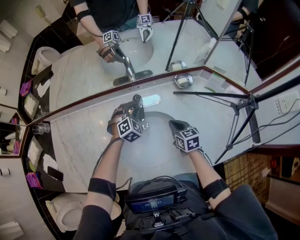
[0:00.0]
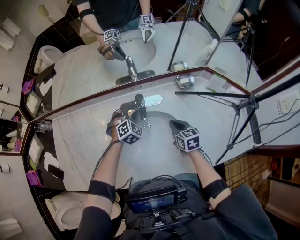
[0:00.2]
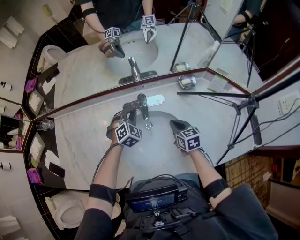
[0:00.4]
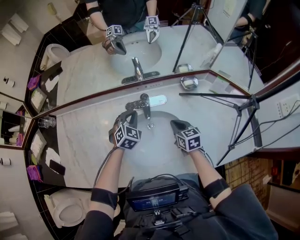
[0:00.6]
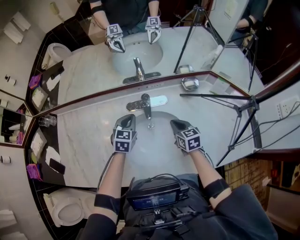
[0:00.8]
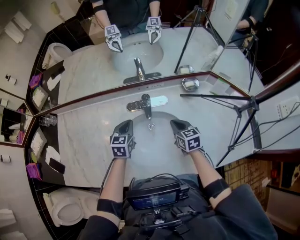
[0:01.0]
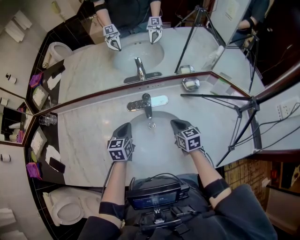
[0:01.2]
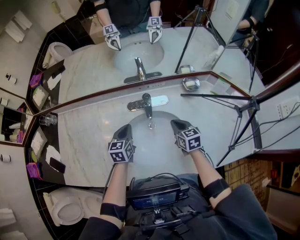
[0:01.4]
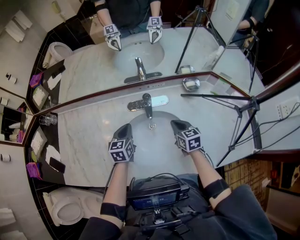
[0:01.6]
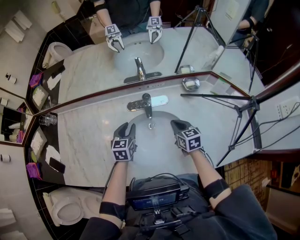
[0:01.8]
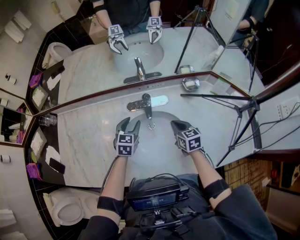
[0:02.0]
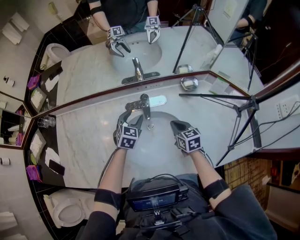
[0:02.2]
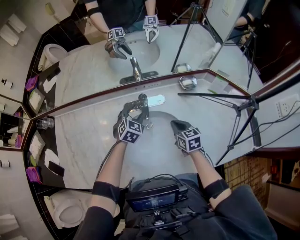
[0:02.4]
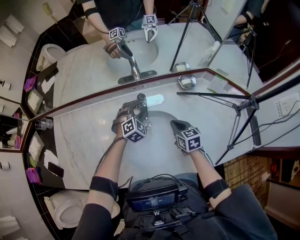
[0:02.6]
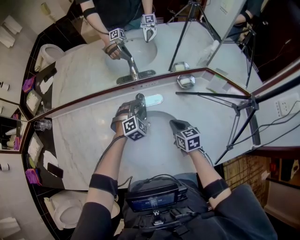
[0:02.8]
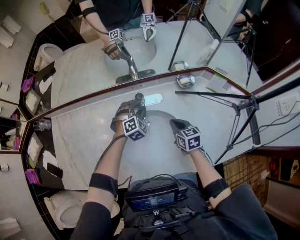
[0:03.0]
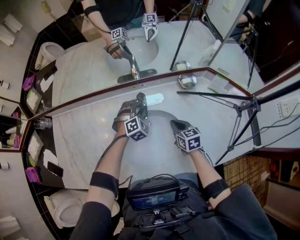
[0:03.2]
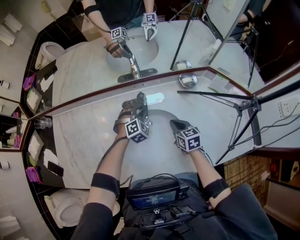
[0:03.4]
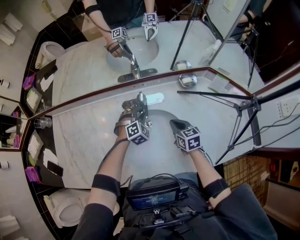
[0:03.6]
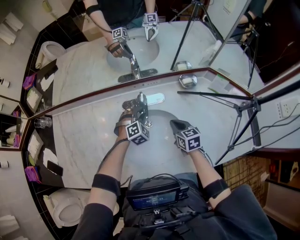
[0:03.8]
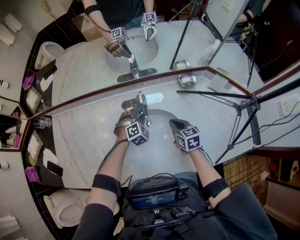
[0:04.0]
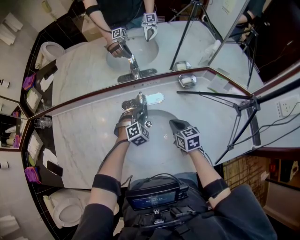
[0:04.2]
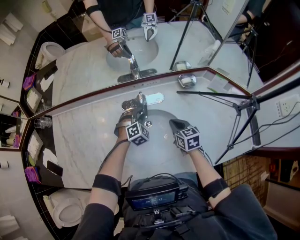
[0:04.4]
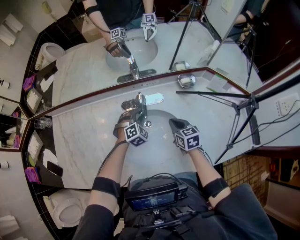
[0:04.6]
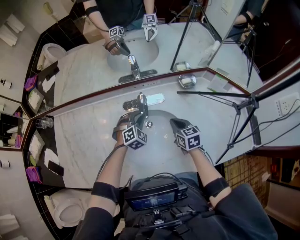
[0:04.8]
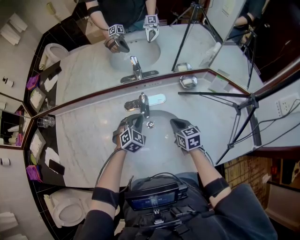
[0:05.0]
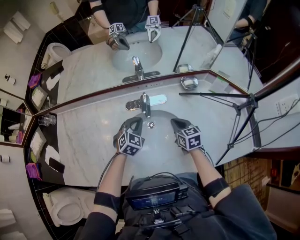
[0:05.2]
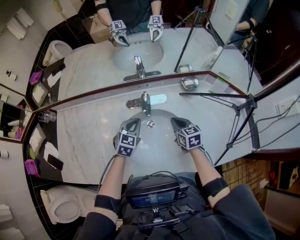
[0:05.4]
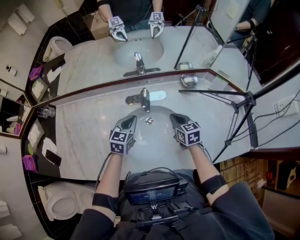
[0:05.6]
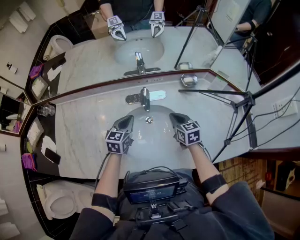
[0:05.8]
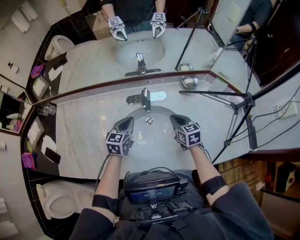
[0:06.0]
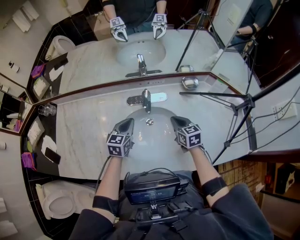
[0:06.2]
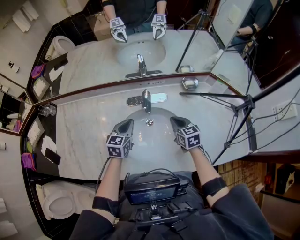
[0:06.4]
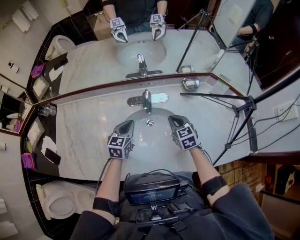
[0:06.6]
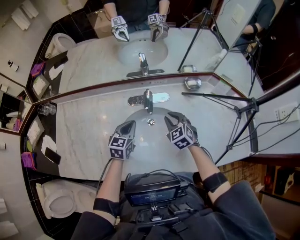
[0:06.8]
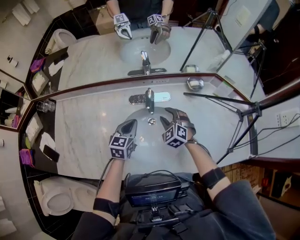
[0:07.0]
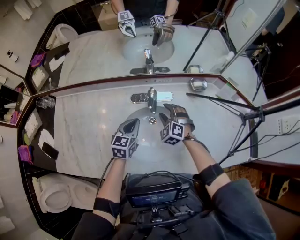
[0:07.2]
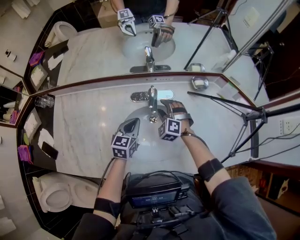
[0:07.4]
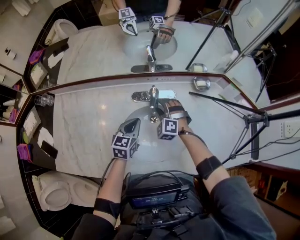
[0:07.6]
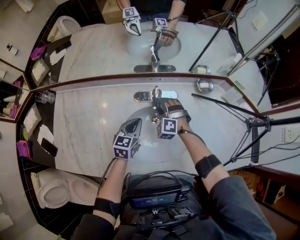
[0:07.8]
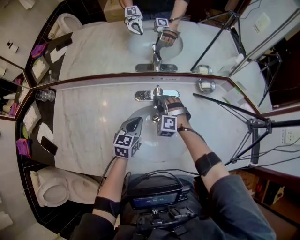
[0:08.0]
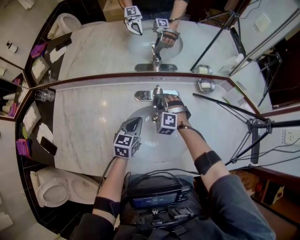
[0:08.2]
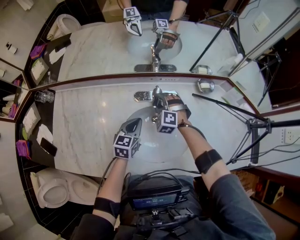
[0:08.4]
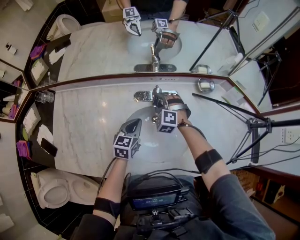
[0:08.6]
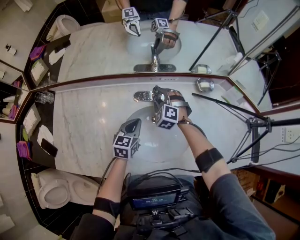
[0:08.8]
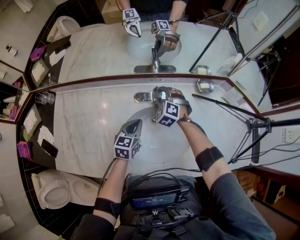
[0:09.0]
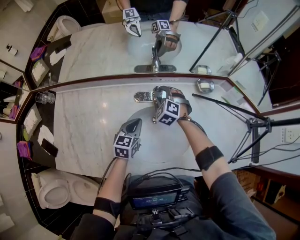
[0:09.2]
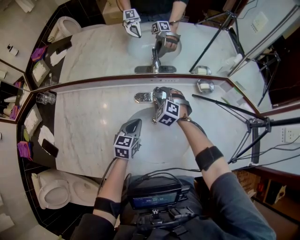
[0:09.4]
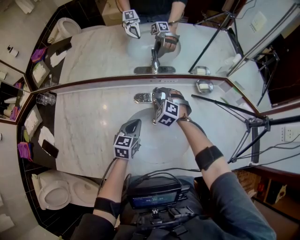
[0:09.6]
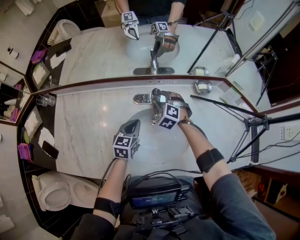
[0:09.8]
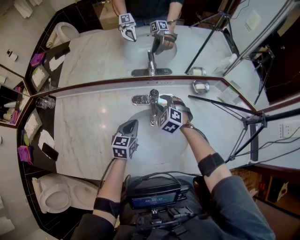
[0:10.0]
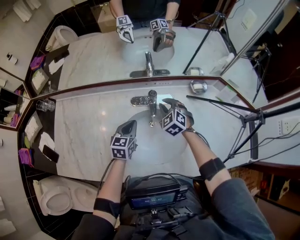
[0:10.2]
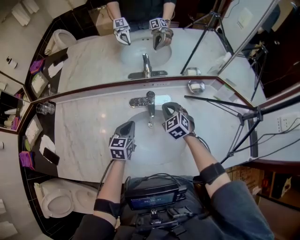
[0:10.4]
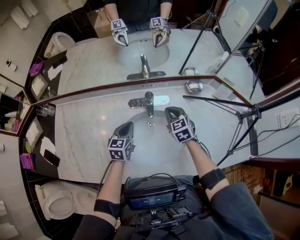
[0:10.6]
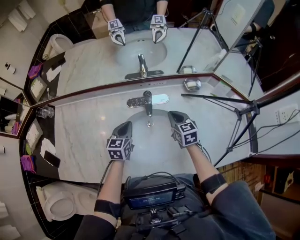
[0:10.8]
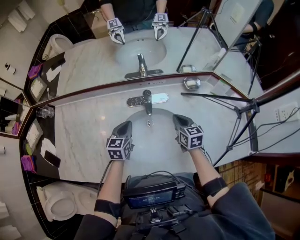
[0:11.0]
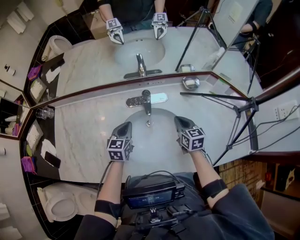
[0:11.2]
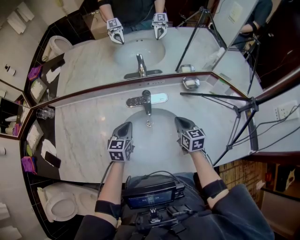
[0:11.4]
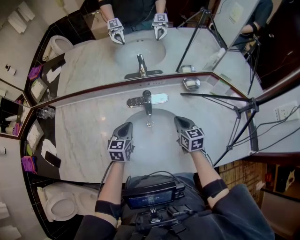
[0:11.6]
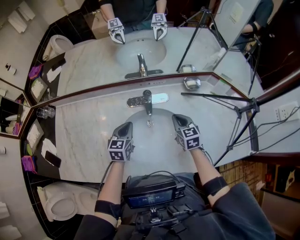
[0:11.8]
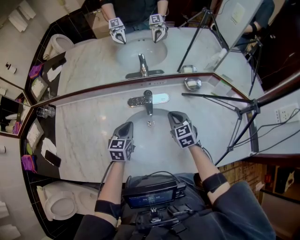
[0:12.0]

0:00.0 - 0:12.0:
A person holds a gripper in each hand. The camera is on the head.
0:00.0 - 0:01.6: The left gripper heads to the left and backward, covering about 15 cm, rolls counterclockwise, seen from behind, by about 70 degrees, and closes its fingers.
0:01.6 - 0:03.0: The left gripper shifts roughly 15 cm to the right, forward and downward, twists roughly 70 degrees clockwise, seen from behind, and opens its fingers.
0:03.0 - 0:04.4: There are only small adjustments of the grippers.
0:04.4 - 0:06.0: The left gripper travels upward, to the left and backward by some 15 cm, rolls counterclockwise, seen from behind, by some 60 degrees, and closes.
0:06.0 - 0:07.6: The right gripper goes some 15 cm to the left and forward, rolls counterclockwise, seen from behind, by roughly 70 degrees, and opens.
0:07.6 - 0:09.0: The right gripper is displaced forward by about 5 cm.
0:09.0 - 0:10.4: The right gripper moves to the right and backward, about 10 cm, rotates some 30 degrees, and closes its fingers.
0:10.4 - 0:12.0: The right gripper travels backward by approximately 5 cm.

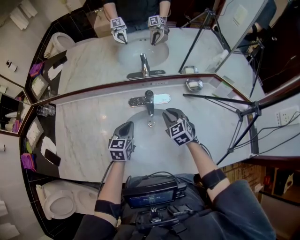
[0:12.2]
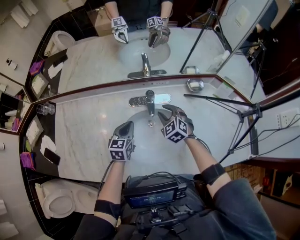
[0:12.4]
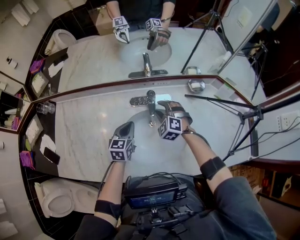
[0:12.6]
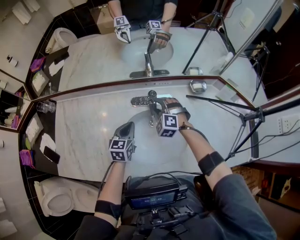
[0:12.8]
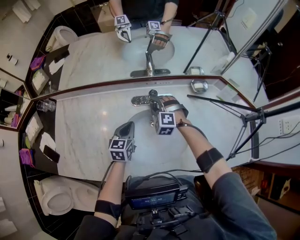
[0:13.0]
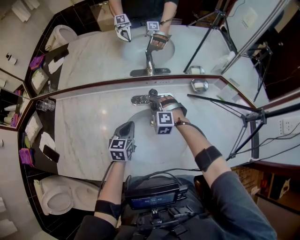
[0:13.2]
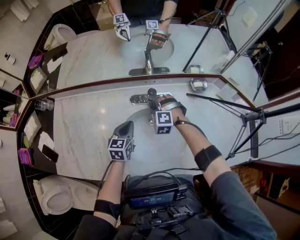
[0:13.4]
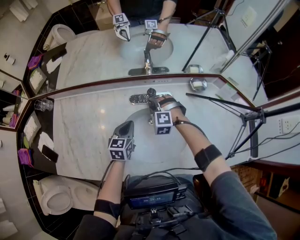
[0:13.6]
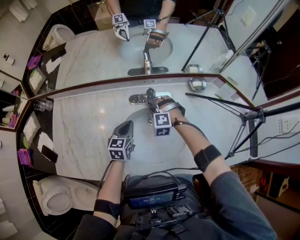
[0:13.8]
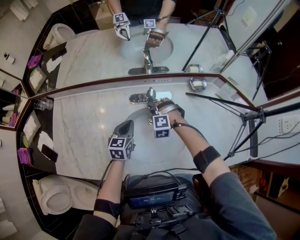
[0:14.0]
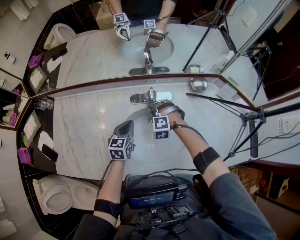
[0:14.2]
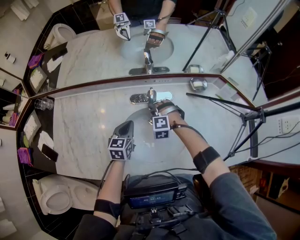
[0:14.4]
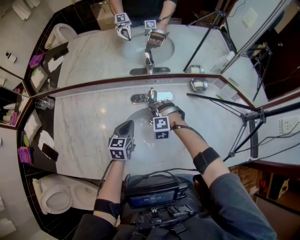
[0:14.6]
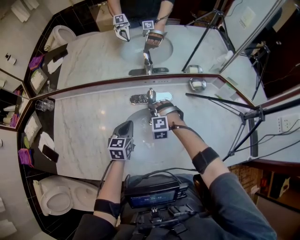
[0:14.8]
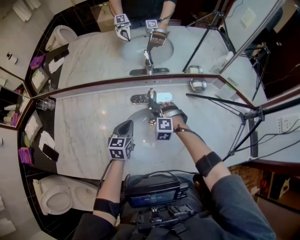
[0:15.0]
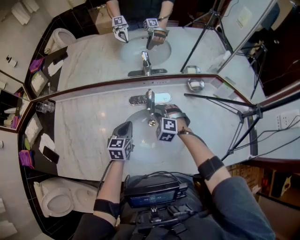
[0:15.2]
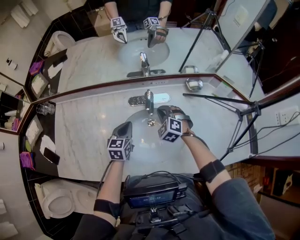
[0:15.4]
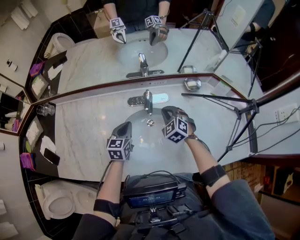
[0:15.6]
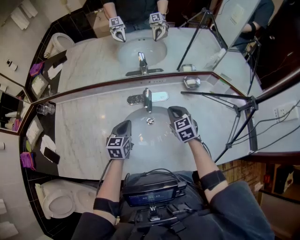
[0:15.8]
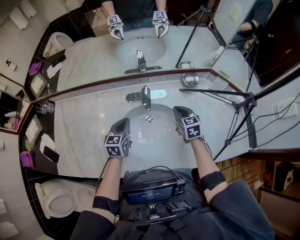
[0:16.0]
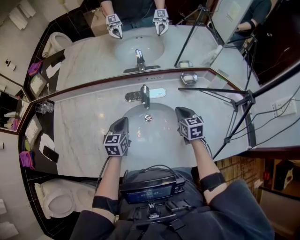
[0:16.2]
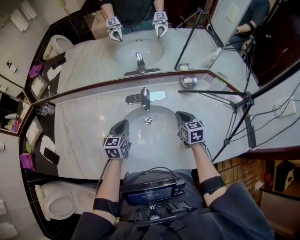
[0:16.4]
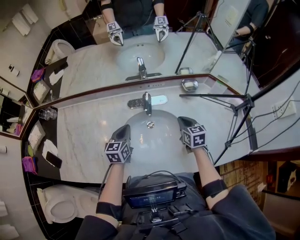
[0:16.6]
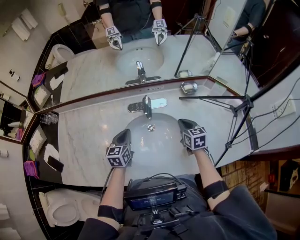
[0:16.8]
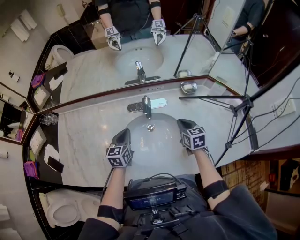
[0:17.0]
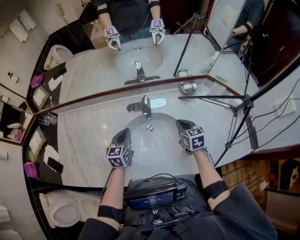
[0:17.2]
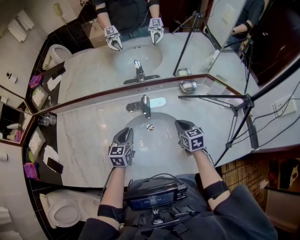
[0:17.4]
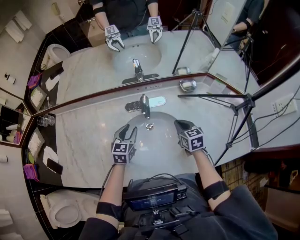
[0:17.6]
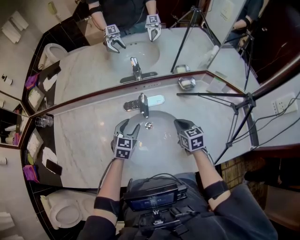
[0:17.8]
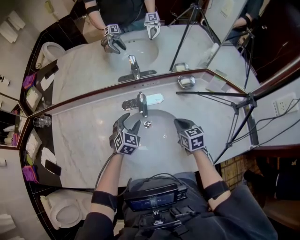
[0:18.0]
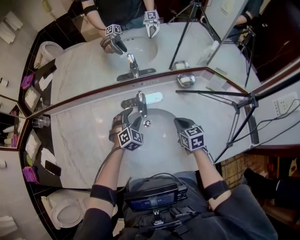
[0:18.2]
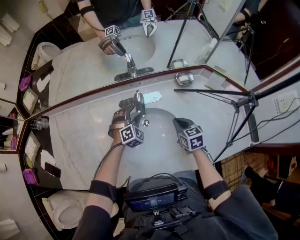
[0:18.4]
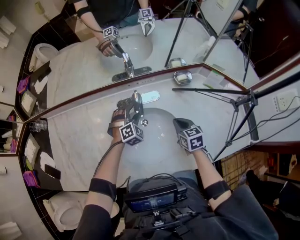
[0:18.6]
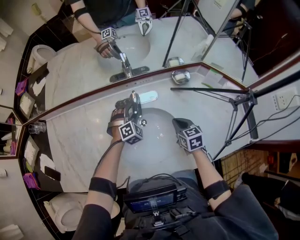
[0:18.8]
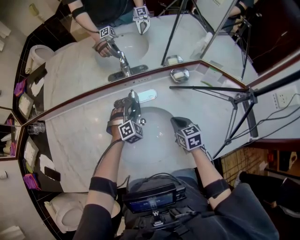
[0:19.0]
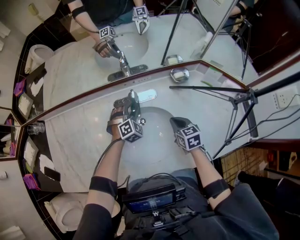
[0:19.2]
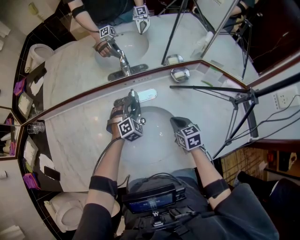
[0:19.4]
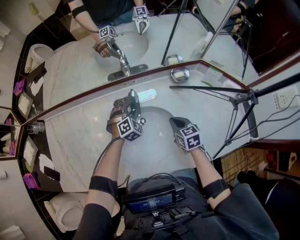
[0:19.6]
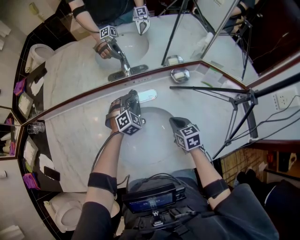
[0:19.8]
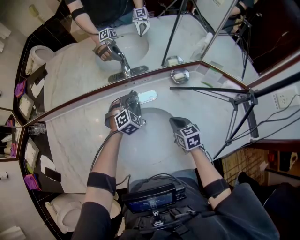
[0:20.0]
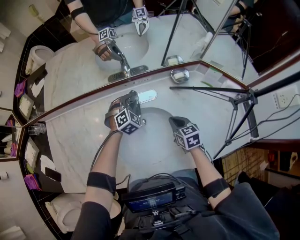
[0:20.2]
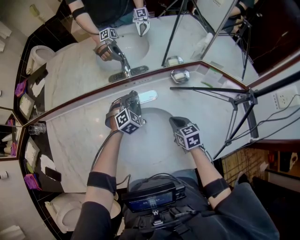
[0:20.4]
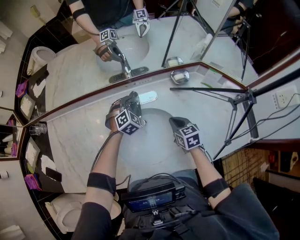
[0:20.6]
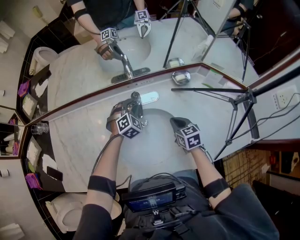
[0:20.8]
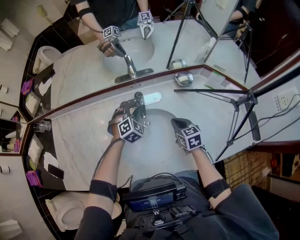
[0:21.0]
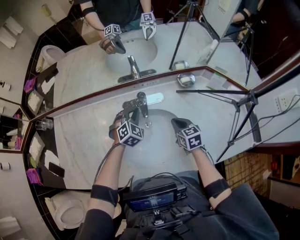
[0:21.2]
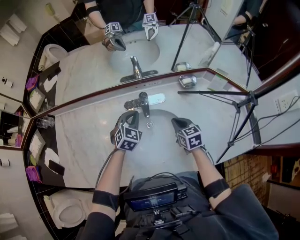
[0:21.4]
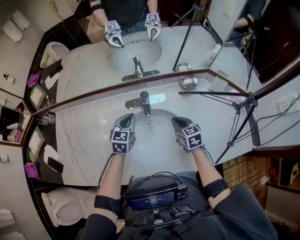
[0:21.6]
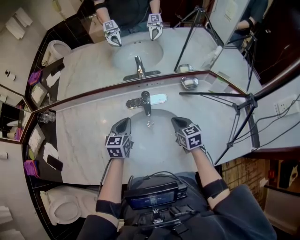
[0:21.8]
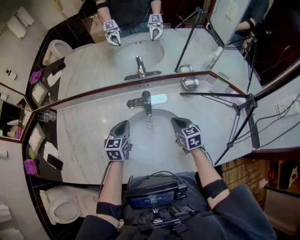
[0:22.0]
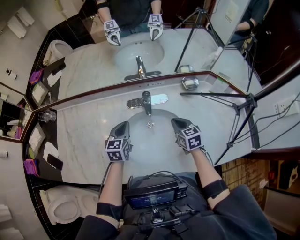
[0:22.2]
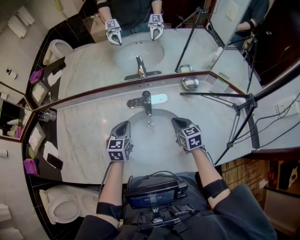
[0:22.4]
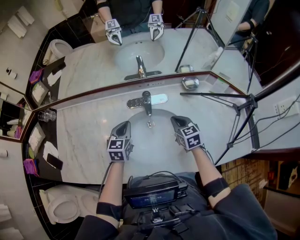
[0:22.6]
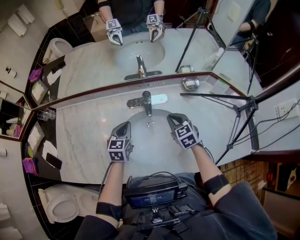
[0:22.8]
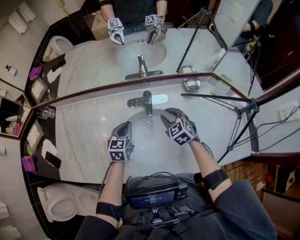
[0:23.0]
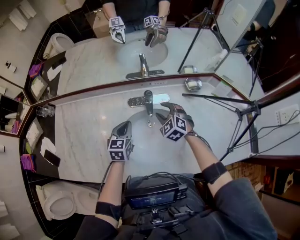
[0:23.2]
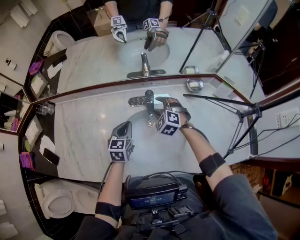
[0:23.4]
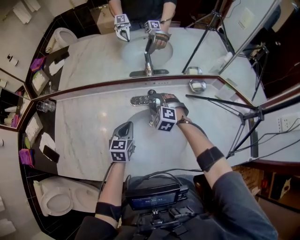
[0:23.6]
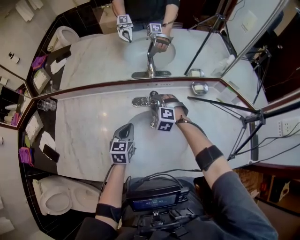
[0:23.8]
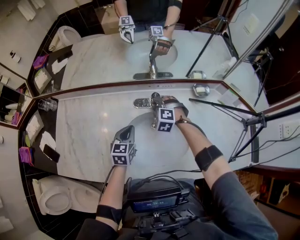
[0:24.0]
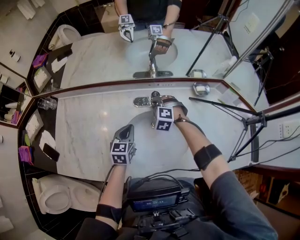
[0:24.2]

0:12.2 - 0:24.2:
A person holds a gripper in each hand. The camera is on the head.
0:12.2 - 0:13.8: The right gripper is displaced to the left and downward by roughly 10 cm, and rotates around the line of its fingers by about 50 degrees, counterclockwise from behind.
0:13.8 - 0:15.2: The grippers move only a little.
0:15.2 - 0:16.6: The right gripper moves to the right and backward, about 15 cm, twists approximately 70 degrees clockwise, seen from behind, and closes up.
0:16.6 - 0:18.2: The left gripper shifts about 10 cm to the right and forward, twists roughly 60 degrees clockwise, seen from behind, and opens its fingers.
0:18.2 - 0:19.8: The left gripper goes approximately 5 cm forward, and closes.
0:19.8 - 0:21.2: The left gripper heads backward, covering about 5 cm, and closes up.
0:21.2 - 0:22.6: The left gripper heads to the left and backward, covering approximately 10 cm, and rotates around the line of its fingers by about 50 degrees, counterclockwise from behind.
0:22.6 - 0:24.2: The right gripper travels to the left and forward by about 20 cm, rotates around the line of its fingers by roughly 70 degrees, counterclockwise from behind, and opens its fingers.
